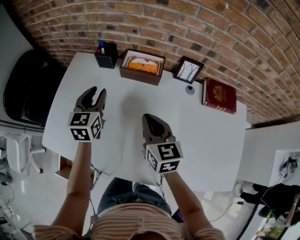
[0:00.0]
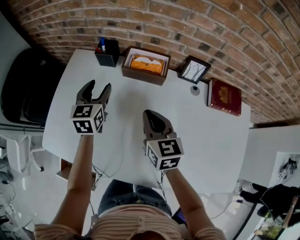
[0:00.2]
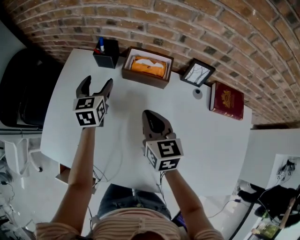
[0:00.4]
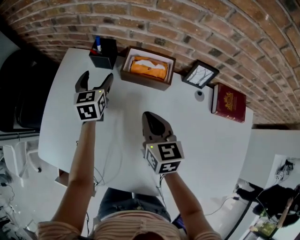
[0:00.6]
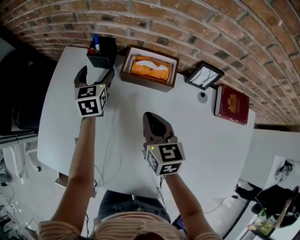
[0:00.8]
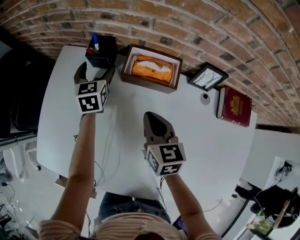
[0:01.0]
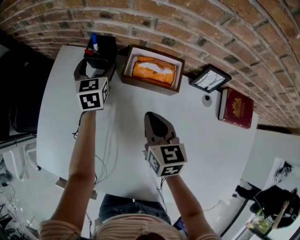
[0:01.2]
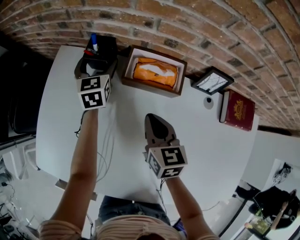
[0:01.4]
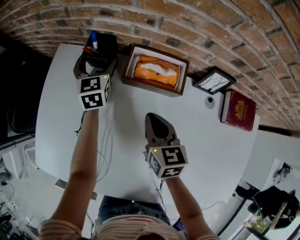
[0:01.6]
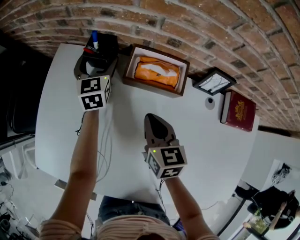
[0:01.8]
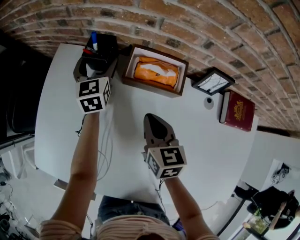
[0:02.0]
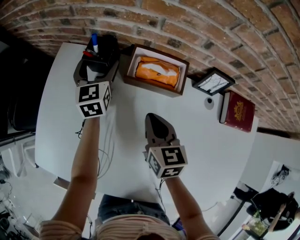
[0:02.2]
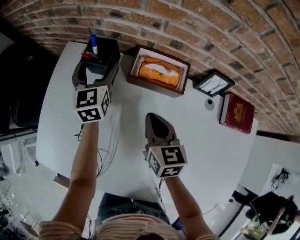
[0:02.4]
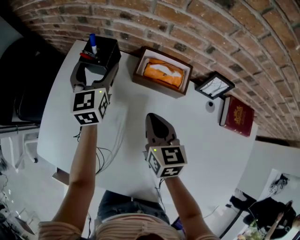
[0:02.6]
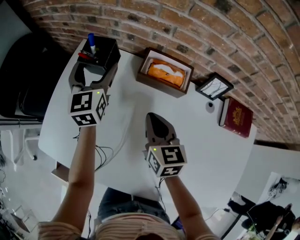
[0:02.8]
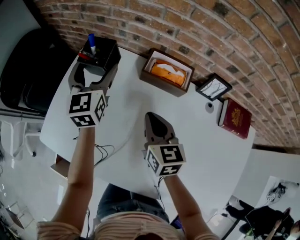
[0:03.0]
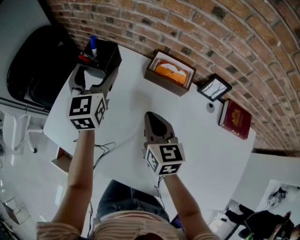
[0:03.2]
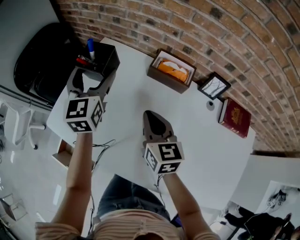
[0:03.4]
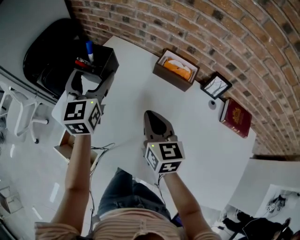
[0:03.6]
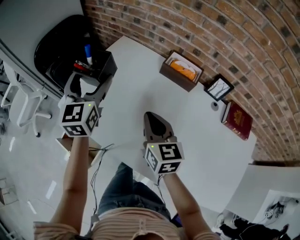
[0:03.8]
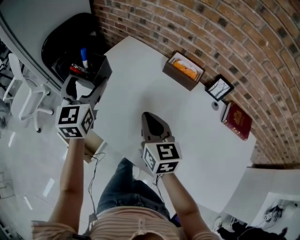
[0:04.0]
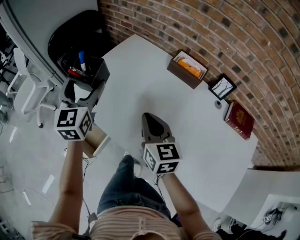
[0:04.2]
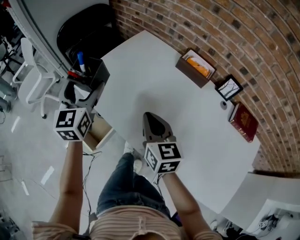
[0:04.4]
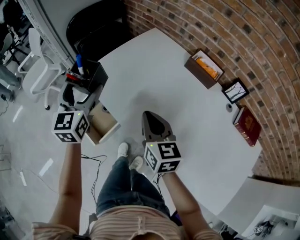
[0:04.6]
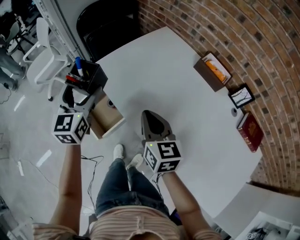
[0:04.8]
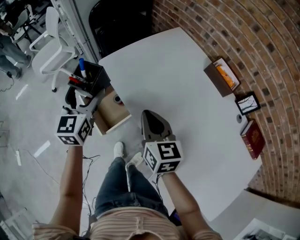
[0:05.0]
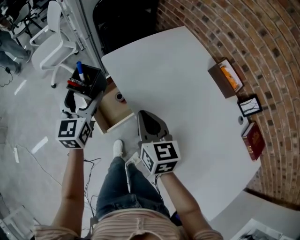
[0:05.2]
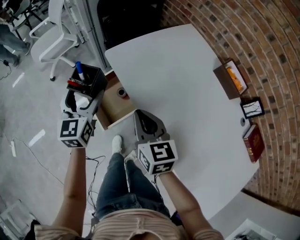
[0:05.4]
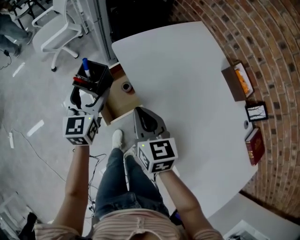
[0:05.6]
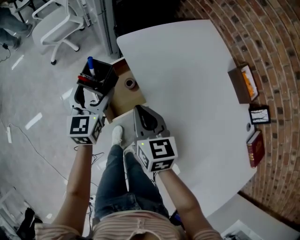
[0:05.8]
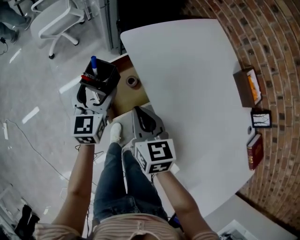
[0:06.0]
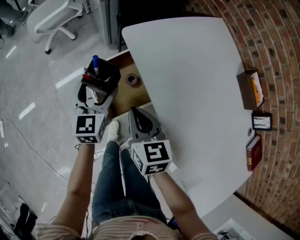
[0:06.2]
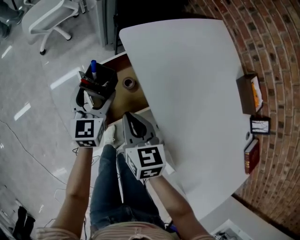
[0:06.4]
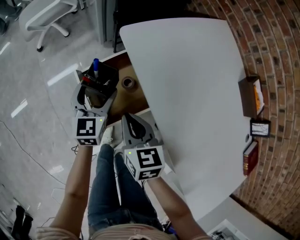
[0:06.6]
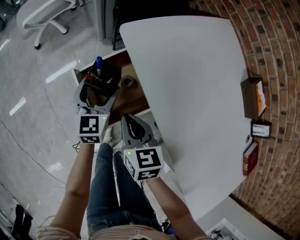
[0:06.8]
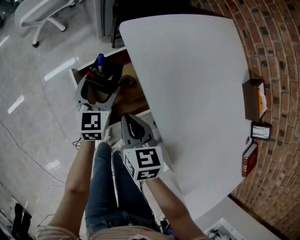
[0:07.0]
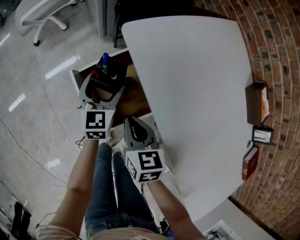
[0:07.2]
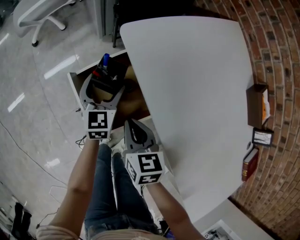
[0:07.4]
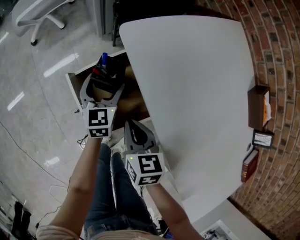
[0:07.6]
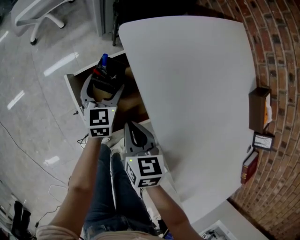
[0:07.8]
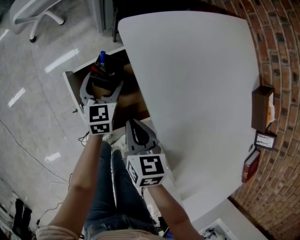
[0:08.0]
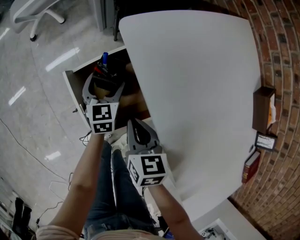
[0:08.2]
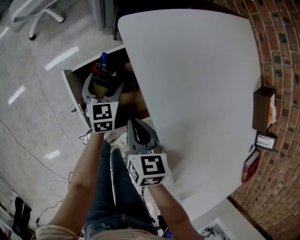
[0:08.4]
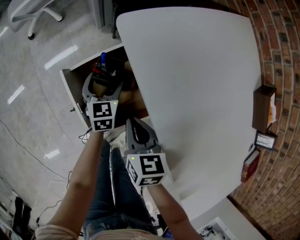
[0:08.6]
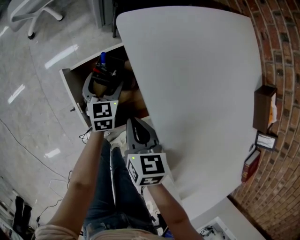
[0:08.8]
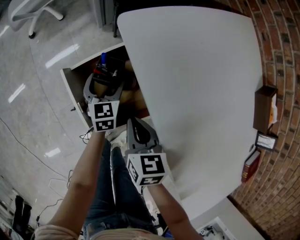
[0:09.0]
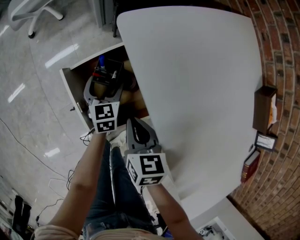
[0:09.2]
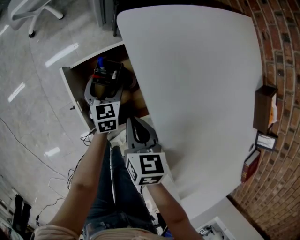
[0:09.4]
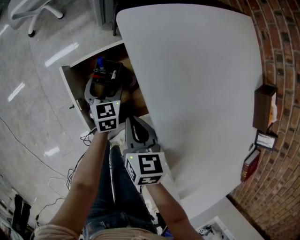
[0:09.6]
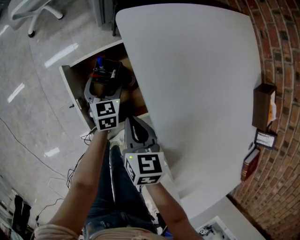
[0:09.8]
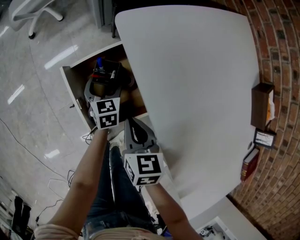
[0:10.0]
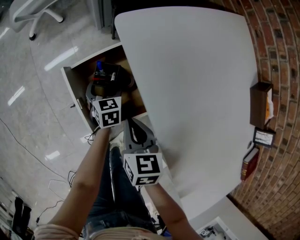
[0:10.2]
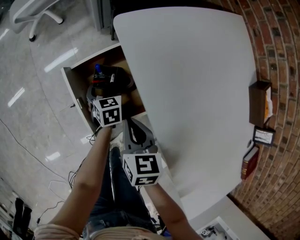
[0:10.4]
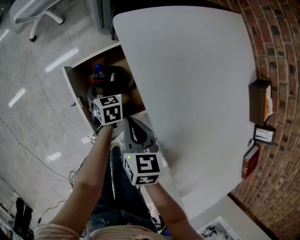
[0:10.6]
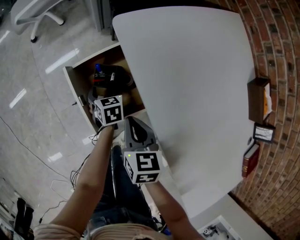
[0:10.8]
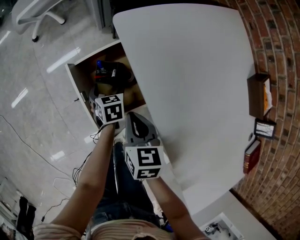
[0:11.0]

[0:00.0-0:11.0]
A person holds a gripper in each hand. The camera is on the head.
0:00.0 to 0:01.6: The left gripper moves forward and downward, roughly 30 cm, and opens its fingers; the right gripper shifts approximately 20 cm forward and downward.
0:01.6 to 0:03.2: The right gripper shifts roughly 15 cm upward, backward and to the left; the left gripper heads backward, upward and to the left, covering approximately 25 cm.
0:03.2 to 0:04.8: The left gripper travels backward and to the left by some 40 cm, and rotates approximately 20 degrees. The right gripper goes approximately 25 cm to the left and backward, and turns by roughly 30 degrees.
0:04.8 to 0:06.2: The left gripper travels downward and to the left by some 25 cm, while the right gripper goes about 25 cm to the left and downward, and turns by some 20 degrees.
0:06.2 to 0:07.8: The right gripper goes approximately 15 cm downward, while the left gripper goes approximately 20 cm downward and forward.
0:07.8 to 0:09.4: The left gripper goes approximately 5 cm downward.
0:09.4 to 0:11.0: The left gripper is displaced backward by about 5 cm, and turns by approximately 20 degrees. Meanwhile the right gripper ends up roughly 5 cm from where it was.

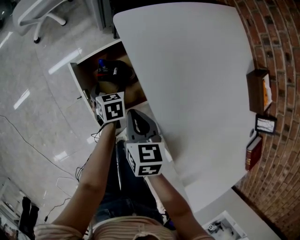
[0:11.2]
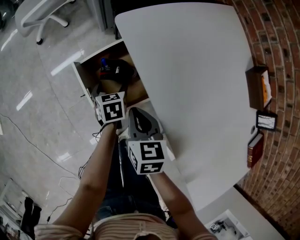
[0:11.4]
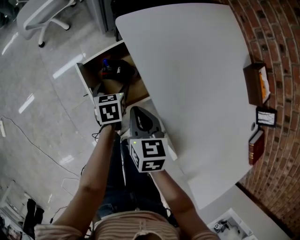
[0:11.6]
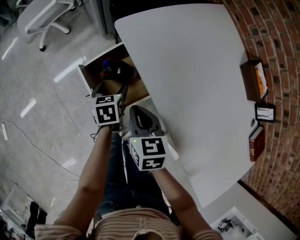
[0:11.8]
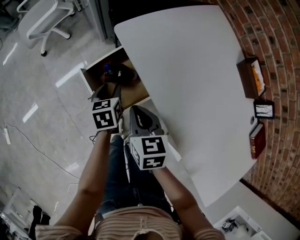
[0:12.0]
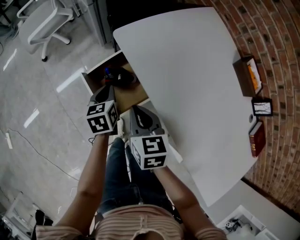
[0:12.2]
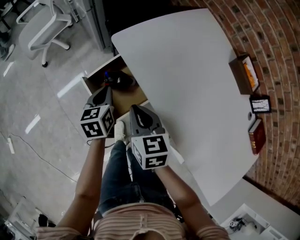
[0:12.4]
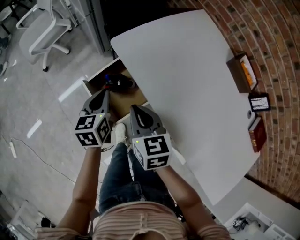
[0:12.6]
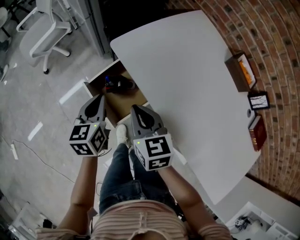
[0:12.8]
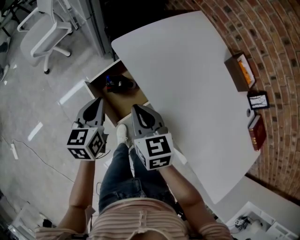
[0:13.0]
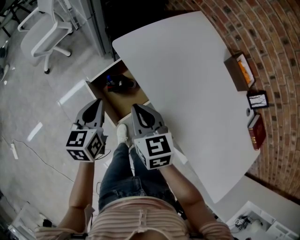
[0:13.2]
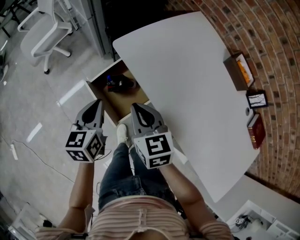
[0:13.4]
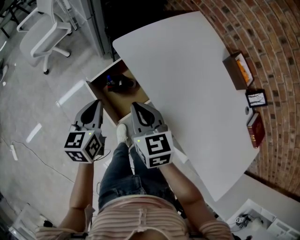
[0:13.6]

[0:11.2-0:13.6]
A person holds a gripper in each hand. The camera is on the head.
0:11.2 to 0:12.4: The right gripper goes about 10 cm upward, while the left gripper shifts roughly 20 cm upward, turns by approximately 20 degrees, and closes.
0:12.4 to 0:13.6: The right gripper shifts about 5 cm upward, while the left gripper goes approximately 10 cm upward and backward.

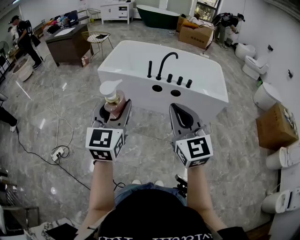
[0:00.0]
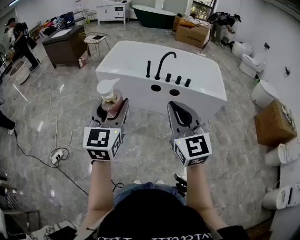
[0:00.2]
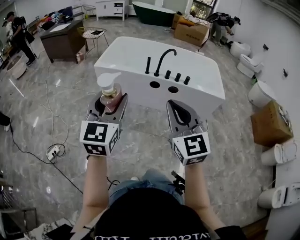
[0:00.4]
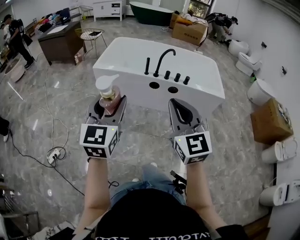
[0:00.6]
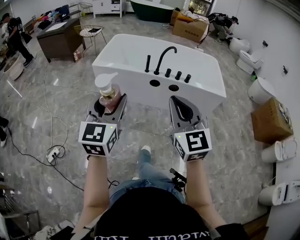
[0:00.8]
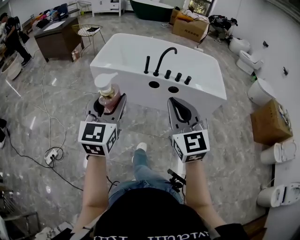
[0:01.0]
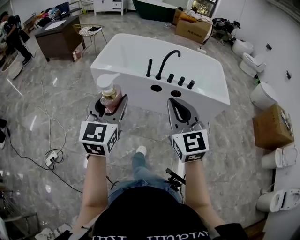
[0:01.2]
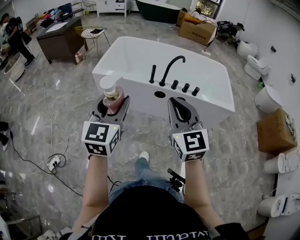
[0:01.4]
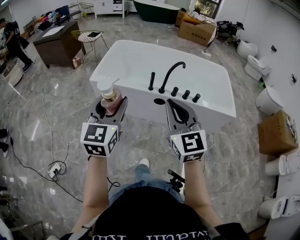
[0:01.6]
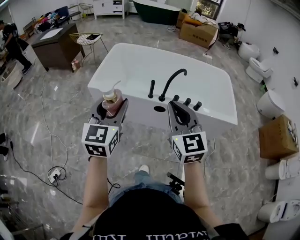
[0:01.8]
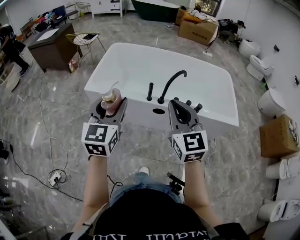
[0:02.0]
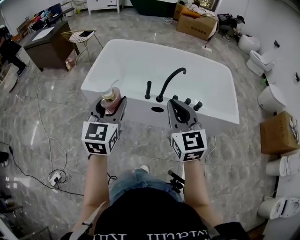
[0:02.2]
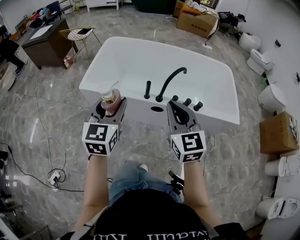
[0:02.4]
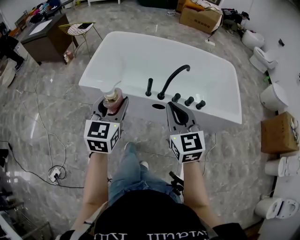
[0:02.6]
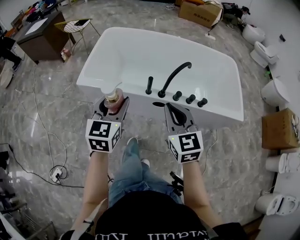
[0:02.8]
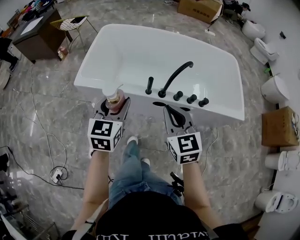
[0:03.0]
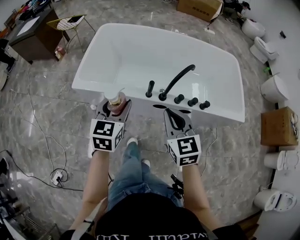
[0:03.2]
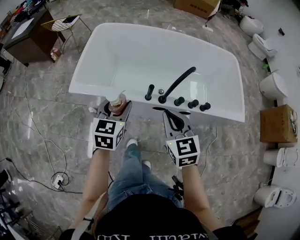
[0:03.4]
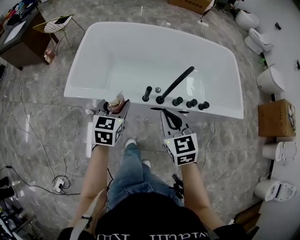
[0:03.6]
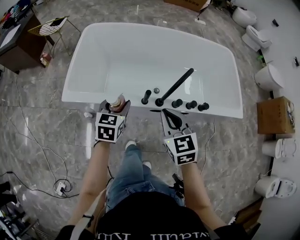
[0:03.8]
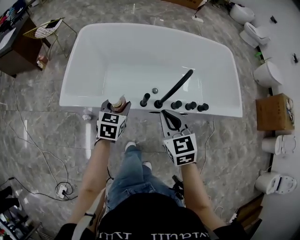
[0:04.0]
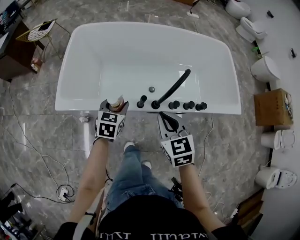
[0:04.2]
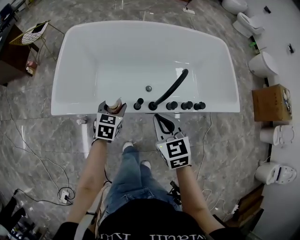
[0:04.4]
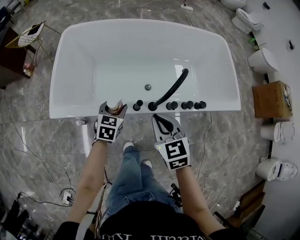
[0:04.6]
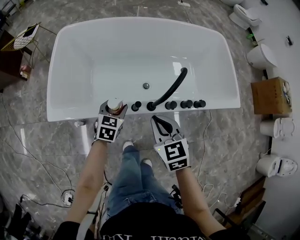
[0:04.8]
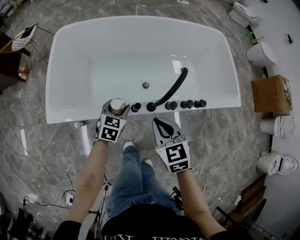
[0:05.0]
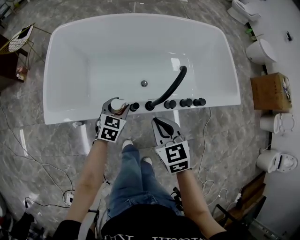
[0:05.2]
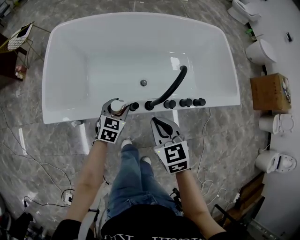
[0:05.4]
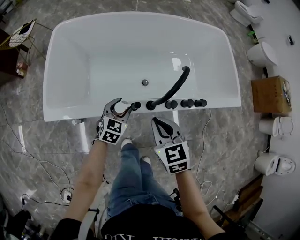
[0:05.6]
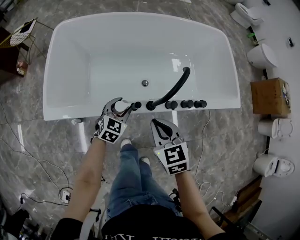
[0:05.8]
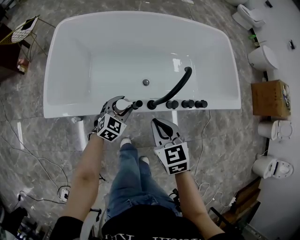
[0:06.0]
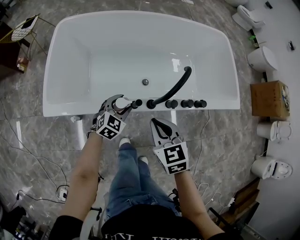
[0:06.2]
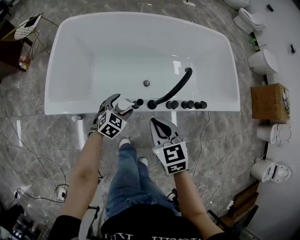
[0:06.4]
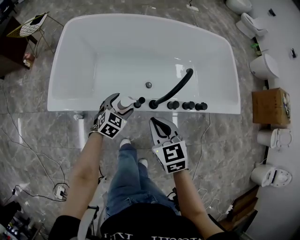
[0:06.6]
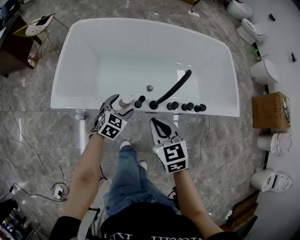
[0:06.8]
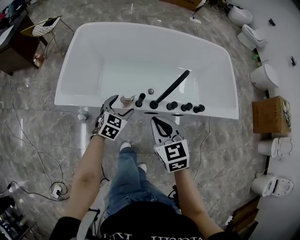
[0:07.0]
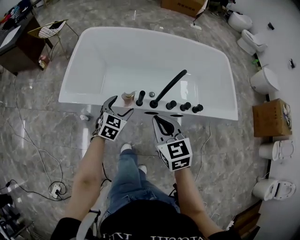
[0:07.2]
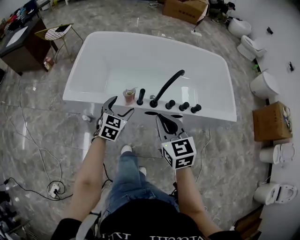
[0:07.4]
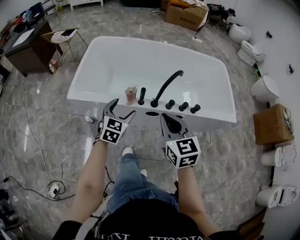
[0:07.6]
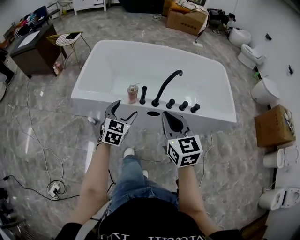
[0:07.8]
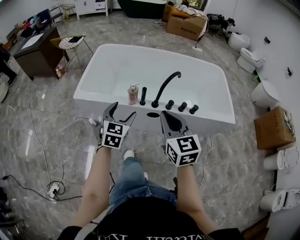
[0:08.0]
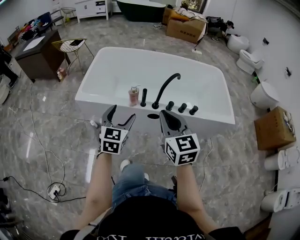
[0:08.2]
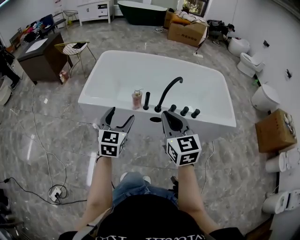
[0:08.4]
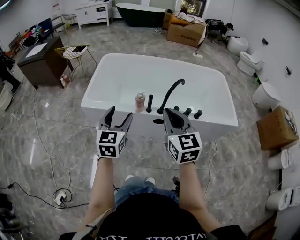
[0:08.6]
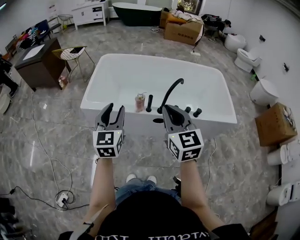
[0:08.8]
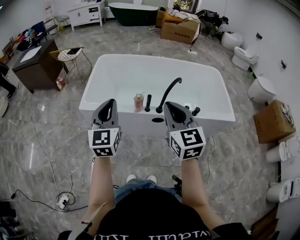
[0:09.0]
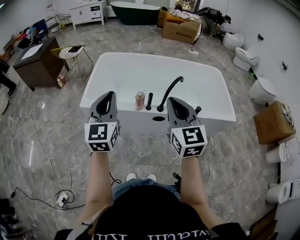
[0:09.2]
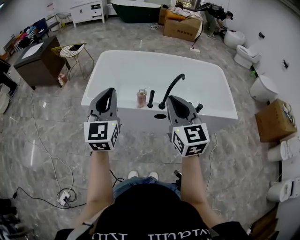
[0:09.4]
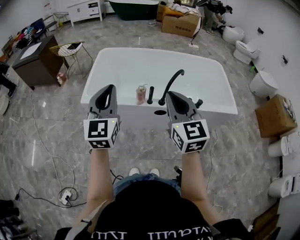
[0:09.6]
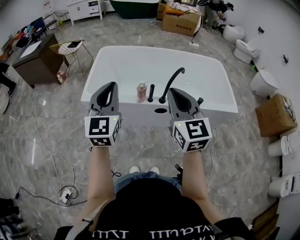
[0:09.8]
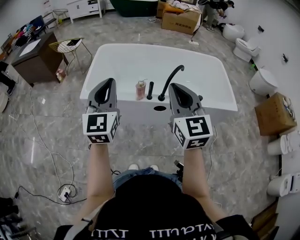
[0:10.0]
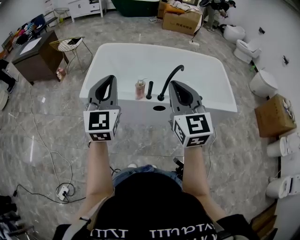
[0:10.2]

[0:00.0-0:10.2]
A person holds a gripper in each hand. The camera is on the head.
0:00.0 to 0:01.4: The two grippers go roughly 20 cm forward.
0:01.4 to 0:03.0: The grippers both shift forward by approximately 35 cm.
0:03.0 to 0:04.4: The right gripper goes approximately 20 cm forward and downward. The left gripper heads forward and downward, covering approximately 30 cm, and rotates about 30 degrees.
0:04.4 to 0:05.8: The left gripper goes some 10 cm downward and to the right, and rotates approximately 20 degrees.
0:05.8 to 0:07.2: The left gripper moves upward and backward, roughly 15 cm, and opens up, while the right gripper heads backward and upward, covering roughly 15 cm.
0:07.2 to 0:08.8: The right gripper goes approximately 20 cm upward and backward. The left gripper shifts roughly 30 cm upward and backward, rotates about 40 degrees, and closes its fingers.
0:08.8 to 0:10.2: The left gripper heads upward, covering approximately 10 cm, and closes up. The right gripper travels upward by about 5 cm.
